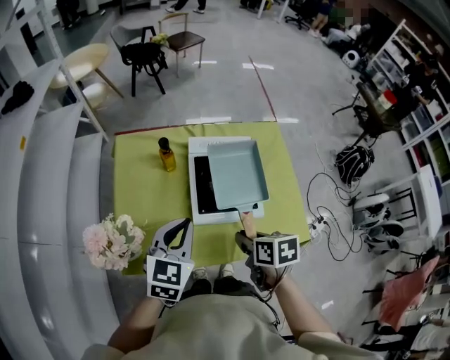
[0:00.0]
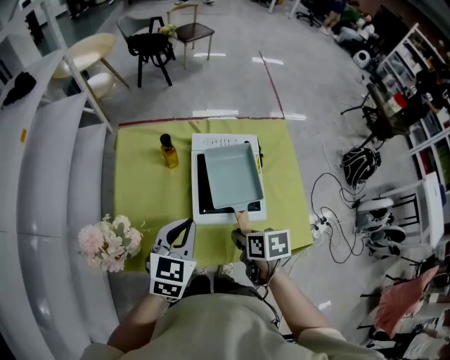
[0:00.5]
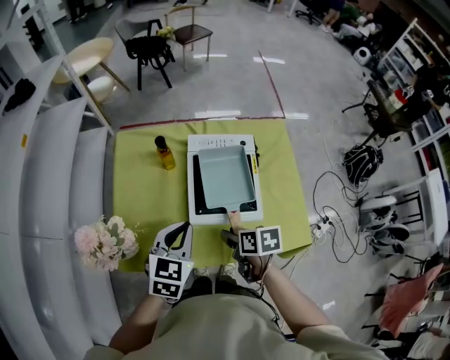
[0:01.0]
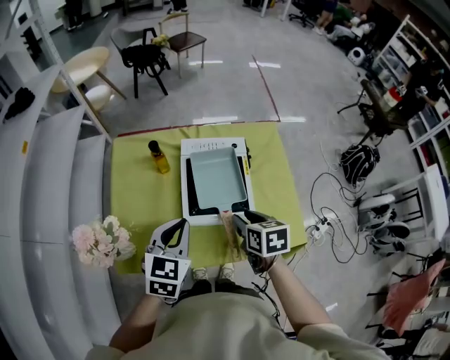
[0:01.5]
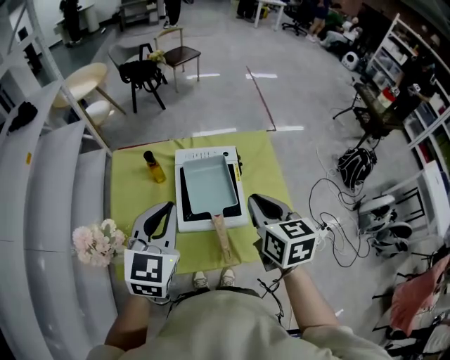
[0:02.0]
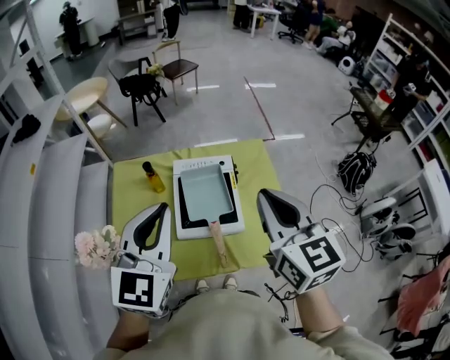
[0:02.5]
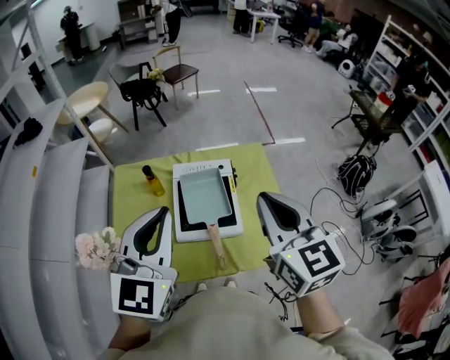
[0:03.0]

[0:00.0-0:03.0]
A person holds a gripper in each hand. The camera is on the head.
0:00.0 to 0:01.5: The right gripper shifts roughly 10 cm to the right and forward, and opens up.
0:01.5 to 0:03.0: The grippers both shift upward by about 25 cm. The right gripper tilts its fingers about 40 degrees upward, and closes its fingers; the left gripper changes its angle by roughly 30 degrees.

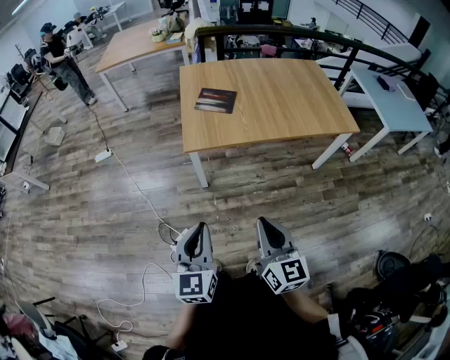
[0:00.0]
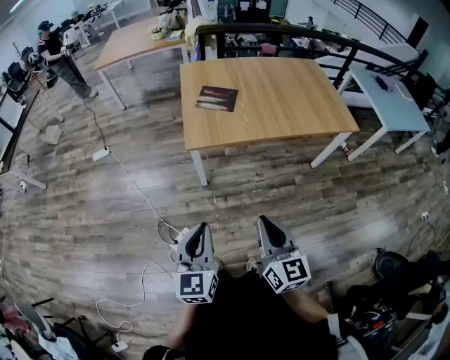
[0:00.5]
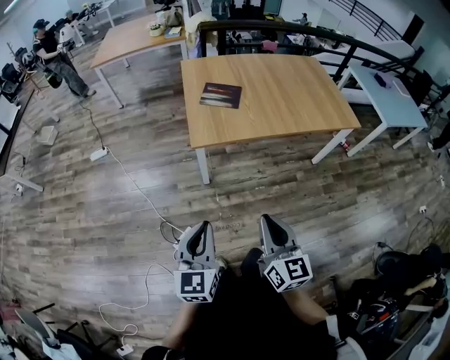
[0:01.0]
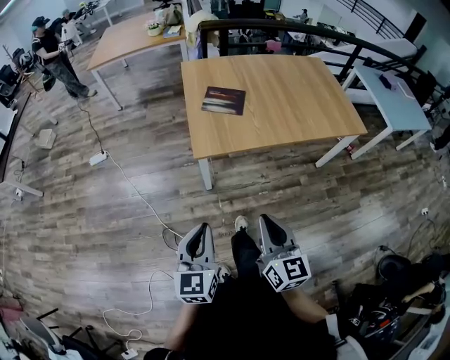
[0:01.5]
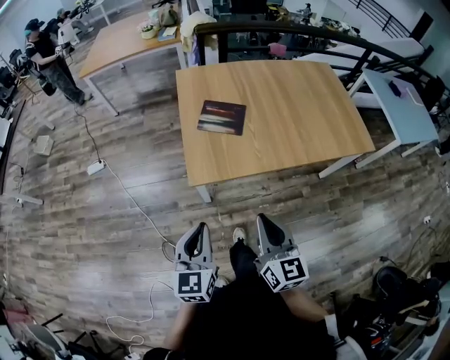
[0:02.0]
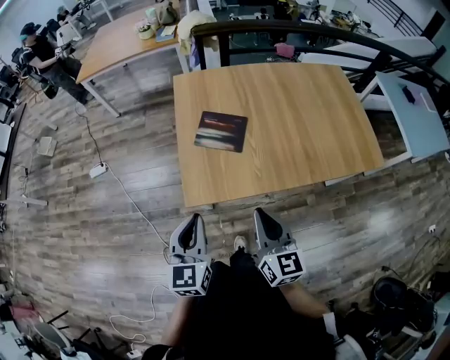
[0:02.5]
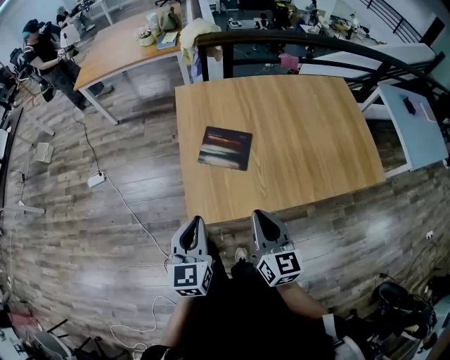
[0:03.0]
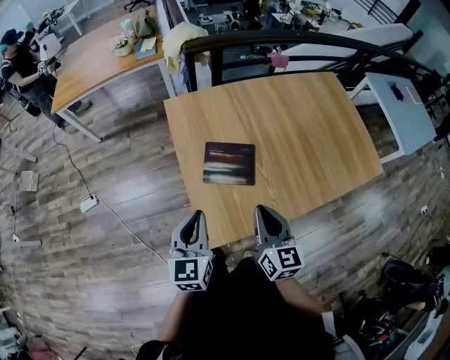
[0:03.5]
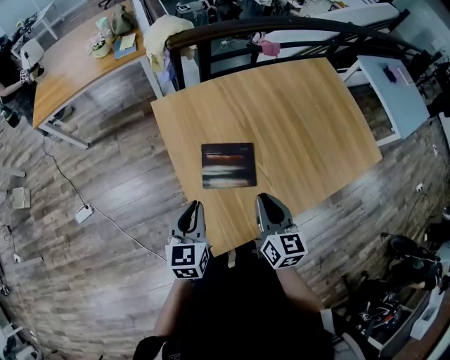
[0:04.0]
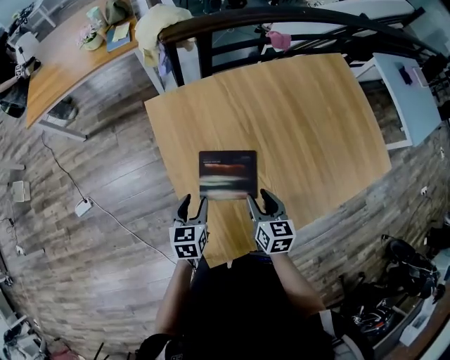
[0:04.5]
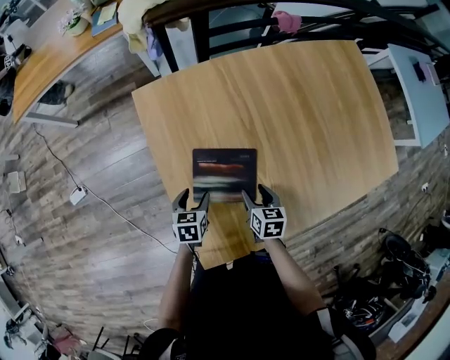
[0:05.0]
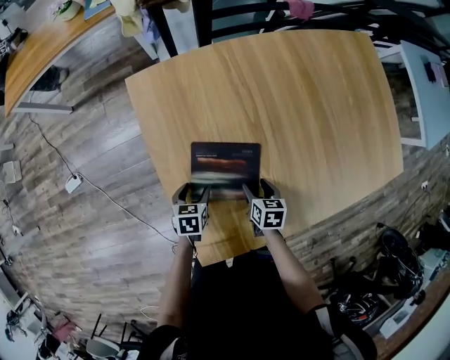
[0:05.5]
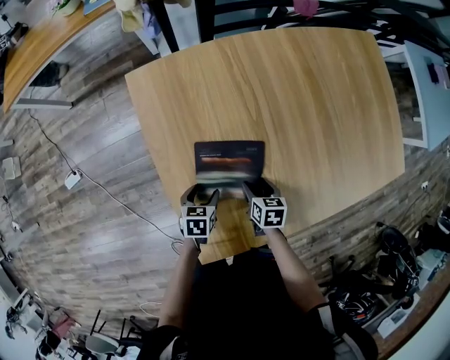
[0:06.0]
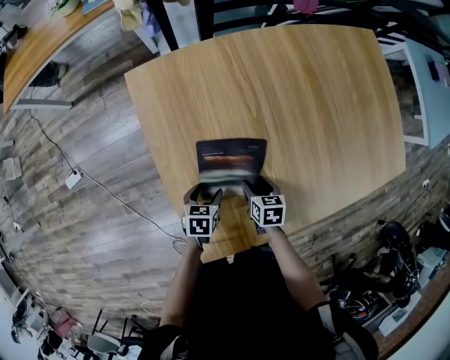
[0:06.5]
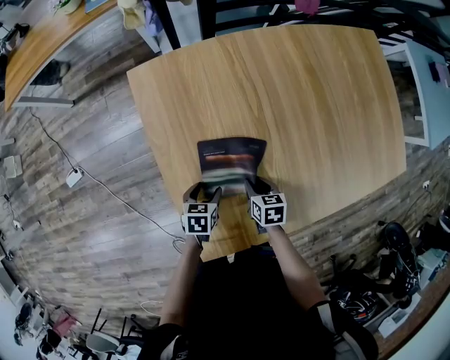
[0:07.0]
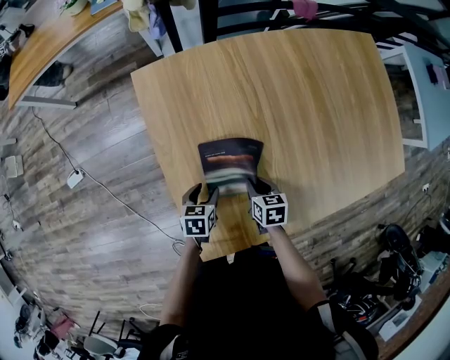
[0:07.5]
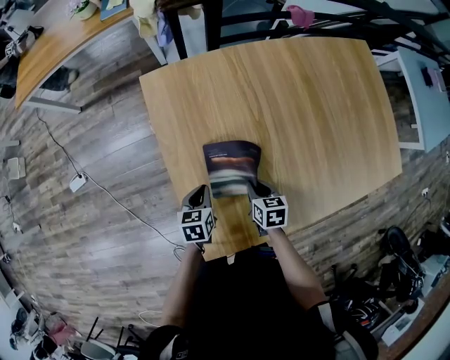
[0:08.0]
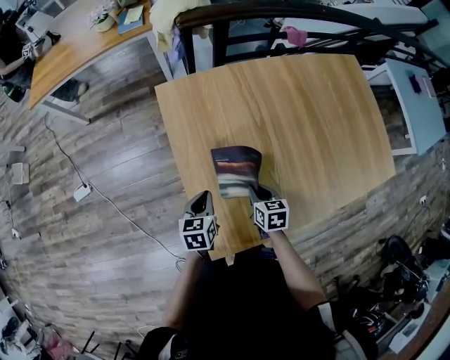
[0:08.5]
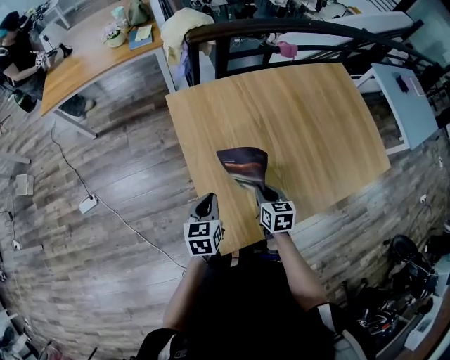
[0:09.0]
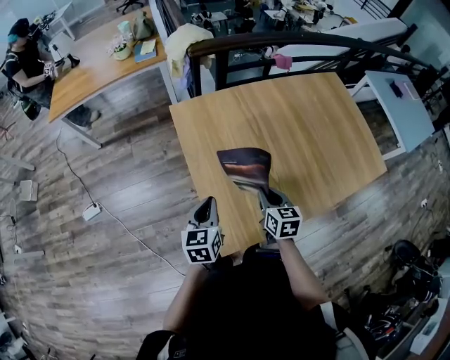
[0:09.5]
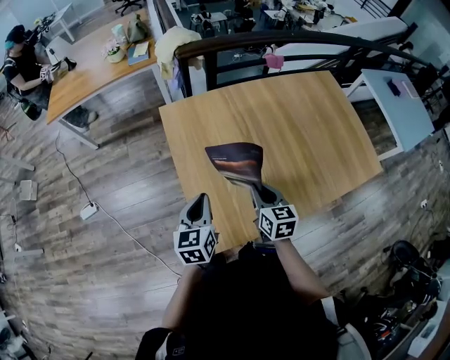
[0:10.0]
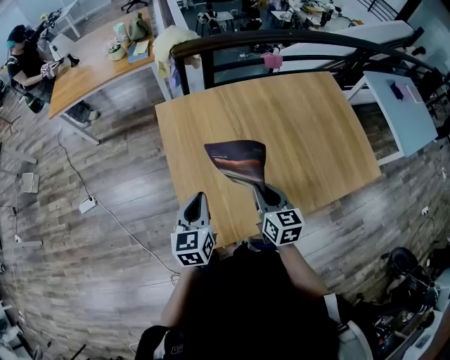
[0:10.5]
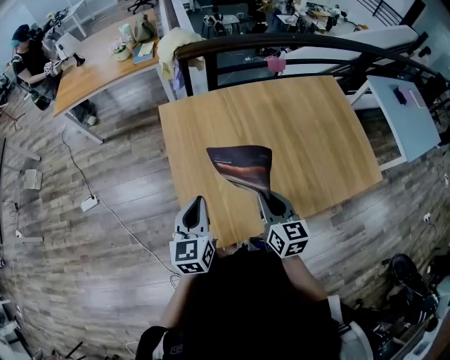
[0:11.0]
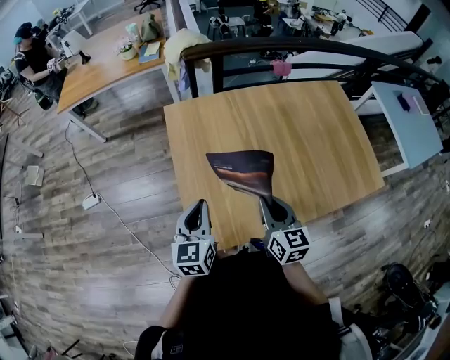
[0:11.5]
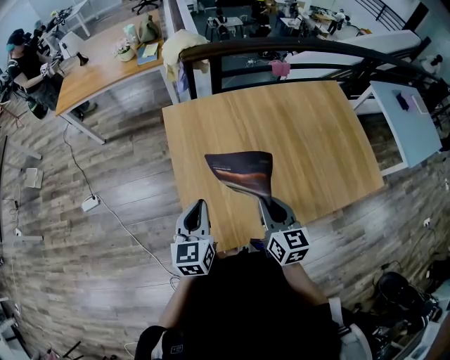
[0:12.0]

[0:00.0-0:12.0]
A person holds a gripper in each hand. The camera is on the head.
0:00.0 to 0:02.0: The grippers both shift forward by roughly 25 cm.
0:02.0 to 0:04.0: Both grippers move forward, approximately 40 cm.
0:04.0 to 0:06.0: The two grippers go about 30 cm downward. The right gripper points its fingers roughly 40 degrees further downward, and opens. Meanwhile the left gripper angles its fingers downward, by some 40 degrees, and opens up.
0:06.0 to 0:08.0: The left gripper shifts roughly 5 cm upward, and closes. Meanwhile the right gripper moves roughly 5 cm, and closes up.
0:08.0 to 0:10.0: Both grippers travel together upward, about 25 cm. The right gripper changes its angle by roughly 30 degrees, while the left gripper rotates about 30 degrees.
0:10.0 to 0:12.0: The left gripper moves roughly 5 cm. Meanwhile the right gripper moves upward, approximately 5 cm.

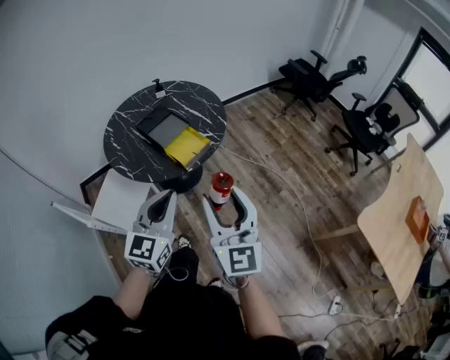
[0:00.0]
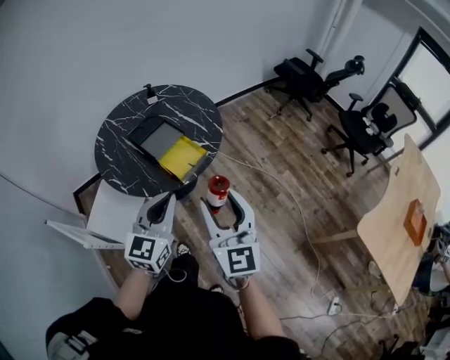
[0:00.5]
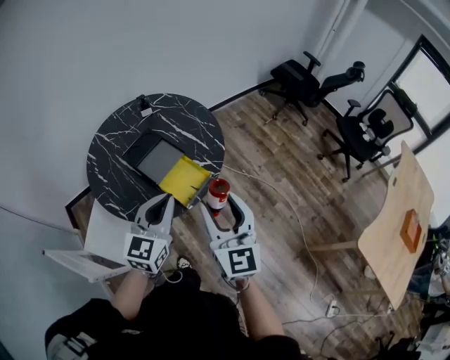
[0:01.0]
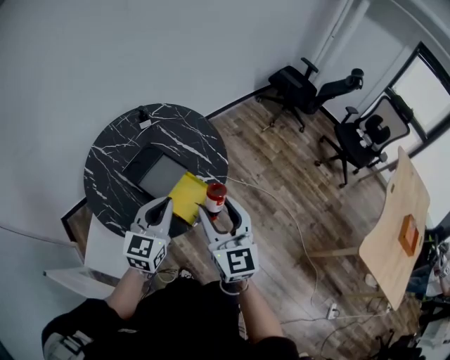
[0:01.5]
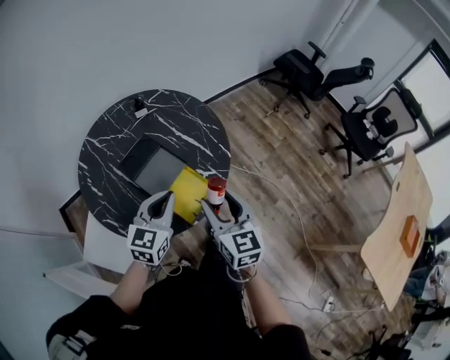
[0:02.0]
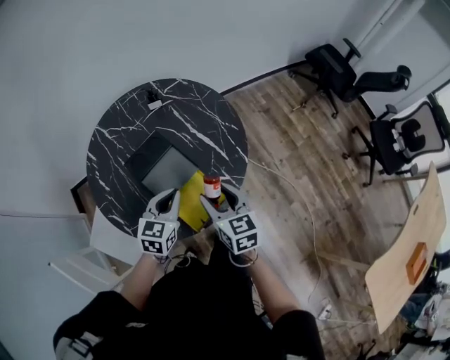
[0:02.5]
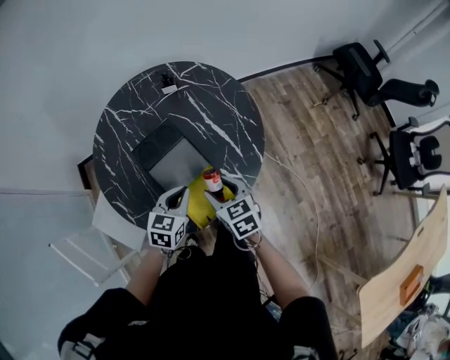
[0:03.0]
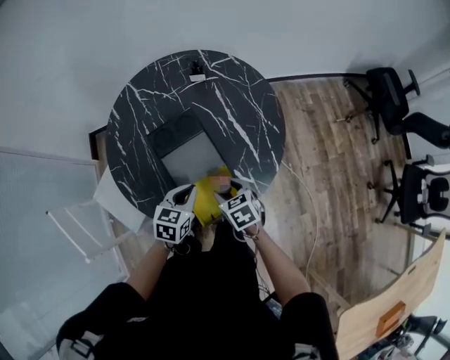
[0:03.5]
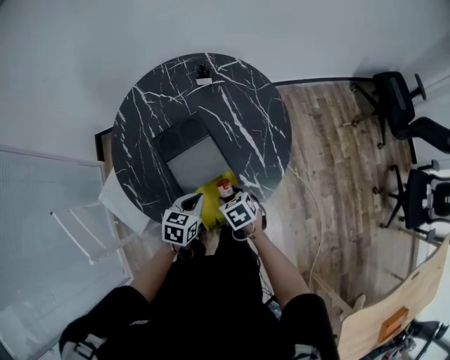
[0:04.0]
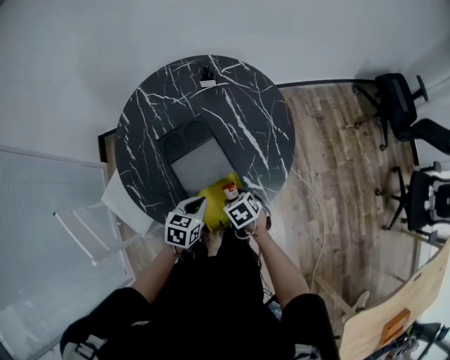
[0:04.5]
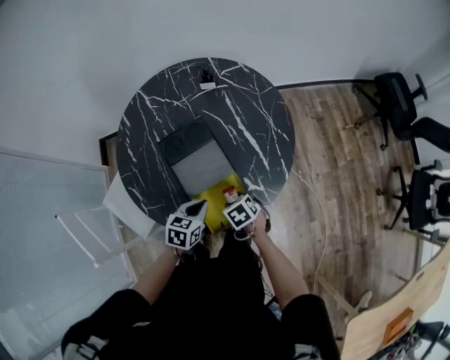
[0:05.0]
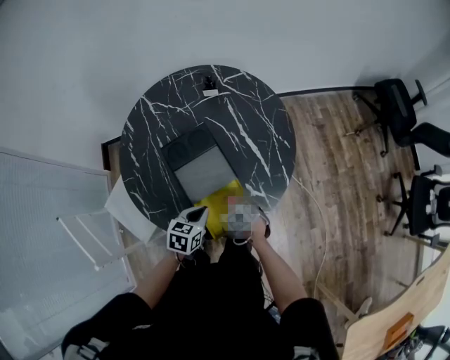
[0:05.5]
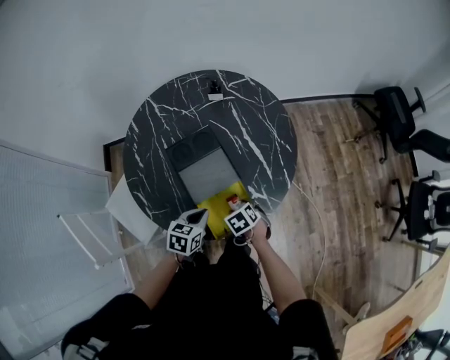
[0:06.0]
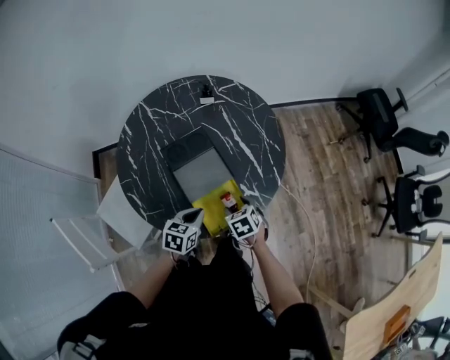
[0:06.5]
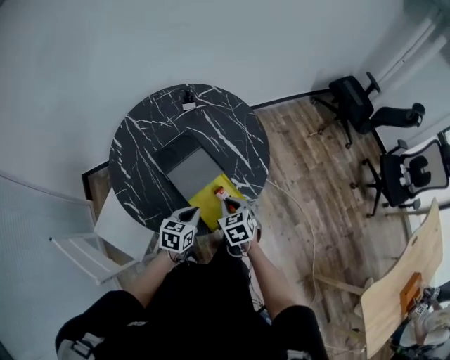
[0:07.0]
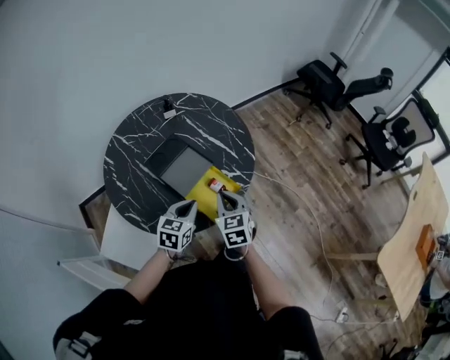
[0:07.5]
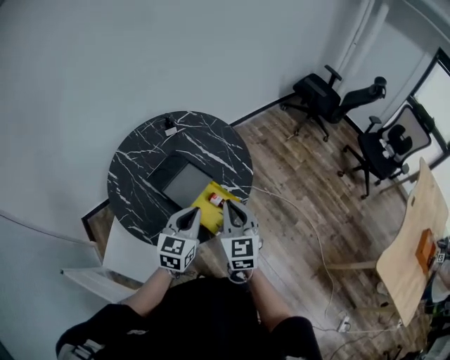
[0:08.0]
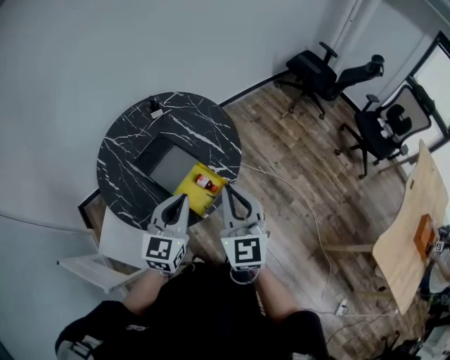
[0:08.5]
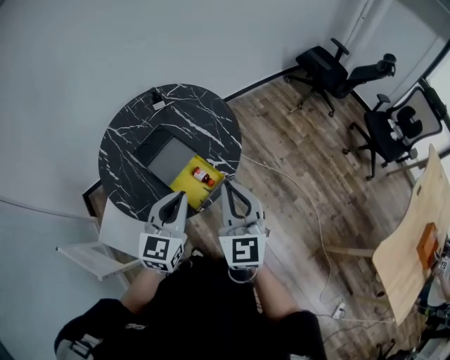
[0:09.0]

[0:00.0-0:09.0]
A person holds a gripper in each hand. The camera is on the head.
0:00.0 to 0:02.0: Both grippers travel together forward, some 35 cm. The right gripper changes its angle by roughly 30 degrees.
0:02.0 to 0:04.5: The two grippers go about 25 cm downward. The left gripper changes its angle by approximately 40 degrees, while the right gripper angles its fingers downward, by some 50 degrees.
0:04.5 to 0:07.0: The left gripper shifts by approximately 5 cm. The right gripper is displaced upward by some 10 cm, changes its angle by some 30 degrees, and closes.
0:07.0 to 0:09.0: The left gripper heads upward, covering roughly 25 cm, and changes its angle by some 30 degrees. Meanwhile the right gripper travels upward and to the right by roughly 30 cm, and tips its fingers upward by roughly 40 degrees.

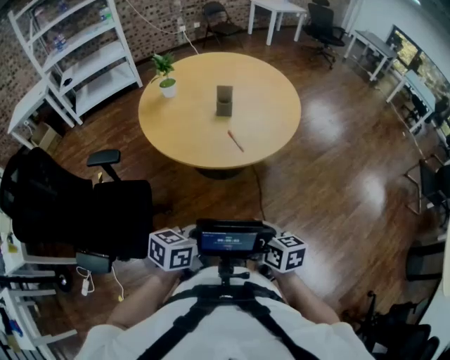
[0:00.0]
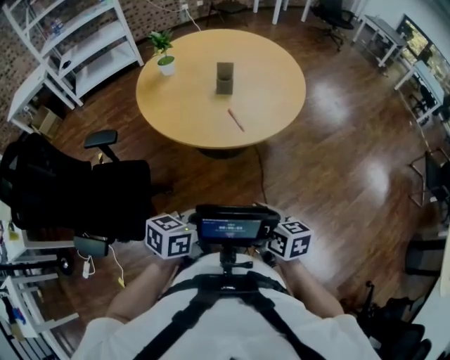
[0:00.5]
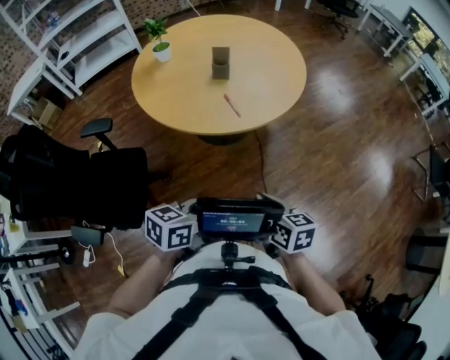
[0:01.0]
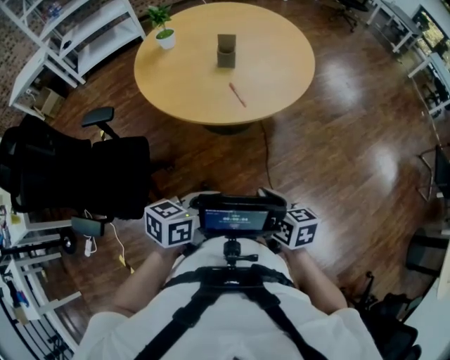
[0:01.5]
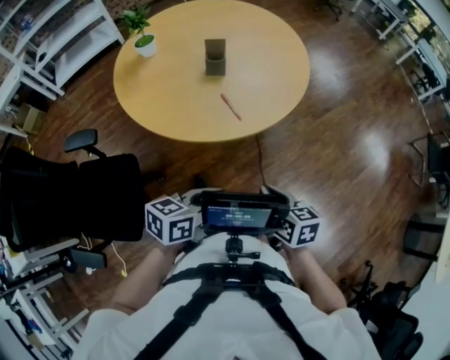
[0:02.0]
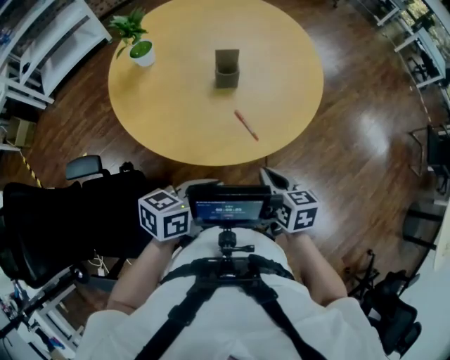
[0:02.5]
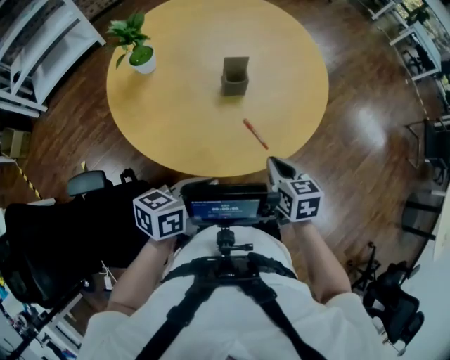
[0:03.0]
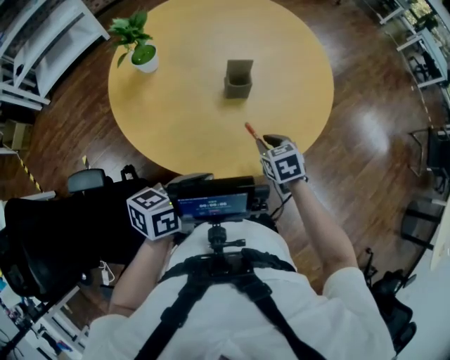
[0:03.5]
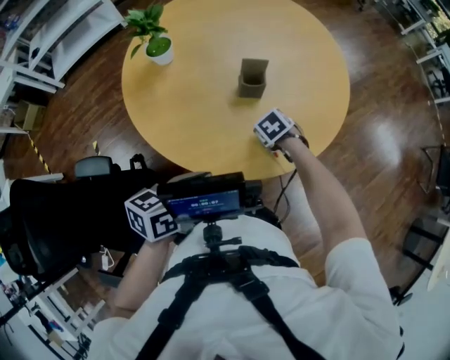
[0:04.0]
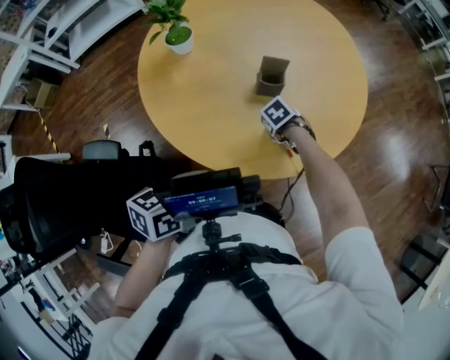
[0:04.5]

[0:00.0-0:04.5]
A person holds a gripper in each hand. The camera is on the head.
0:00.0 to 0:02.0: The grippers both shift forward by some 10 cm.
0:02.0 to 0:04.5: The left gripper moves some 25 cm; the right gripper ends up some 40 cm from where it was, and angles its fingers downward, by some 50 degrees.
